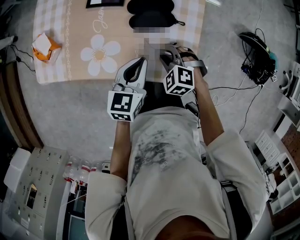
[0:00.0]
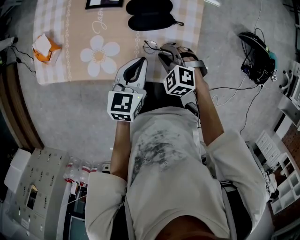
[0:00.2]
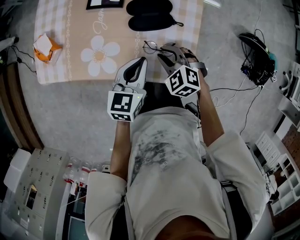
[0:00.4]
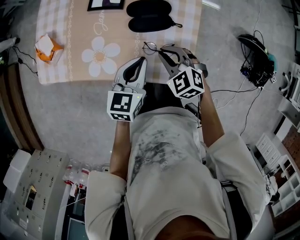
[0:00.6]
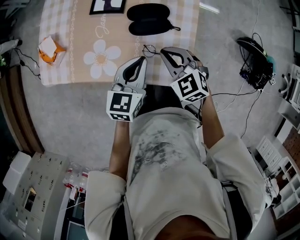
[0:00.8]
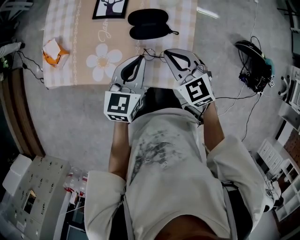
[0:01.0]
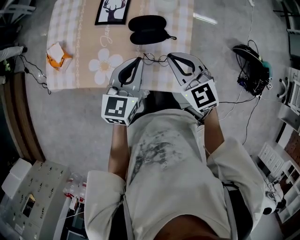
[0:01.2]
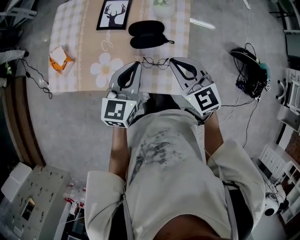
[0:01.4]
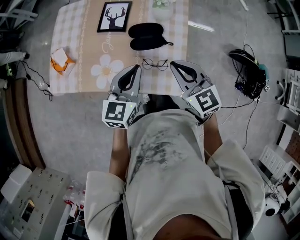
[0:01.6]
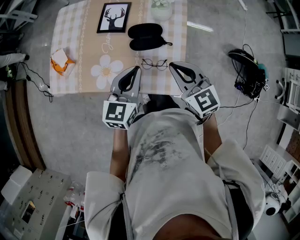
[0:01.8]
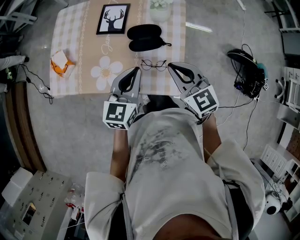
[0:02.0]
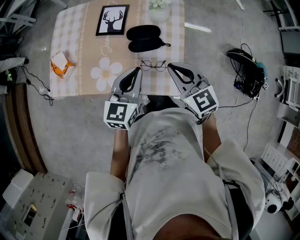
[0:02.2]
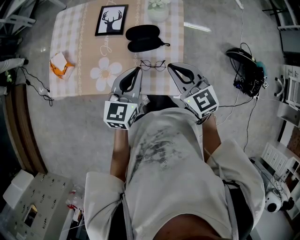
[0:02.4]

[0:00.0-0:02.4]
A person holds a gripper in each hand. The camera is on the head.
0:00.0 to 0:01.2: The left gripper heads upward, covering about 10 cm; the right gripper heads upward, covering some 20 cm, angles its fingers upward, by some 40 degrees, and closes up.
0:01.2 to 0:02.4: The grippers move only a little.

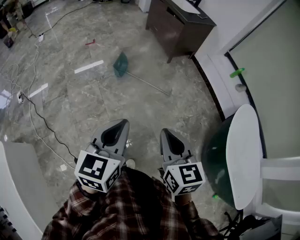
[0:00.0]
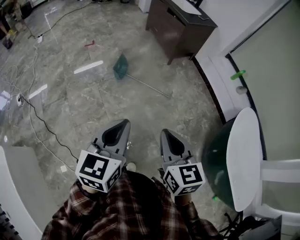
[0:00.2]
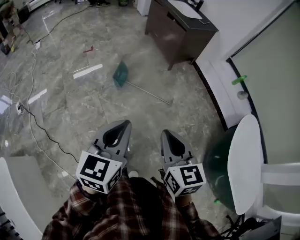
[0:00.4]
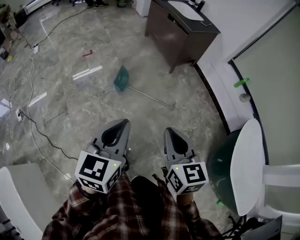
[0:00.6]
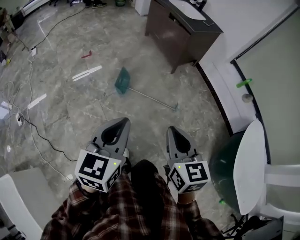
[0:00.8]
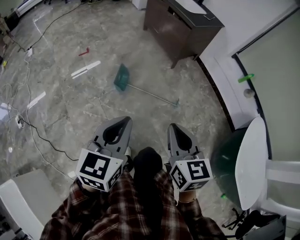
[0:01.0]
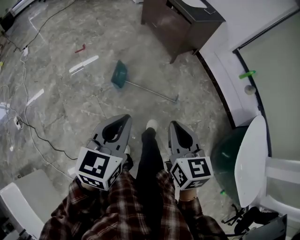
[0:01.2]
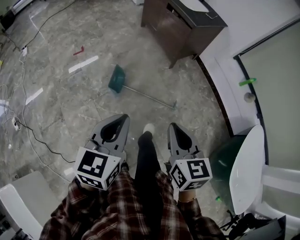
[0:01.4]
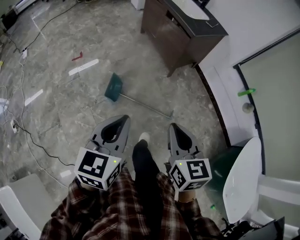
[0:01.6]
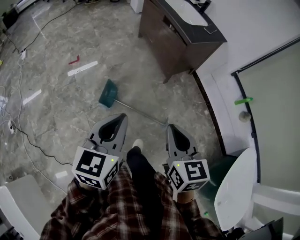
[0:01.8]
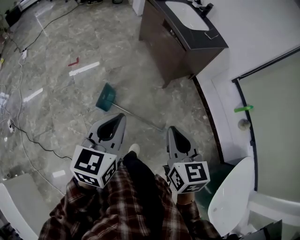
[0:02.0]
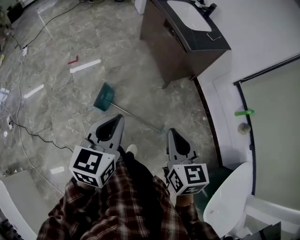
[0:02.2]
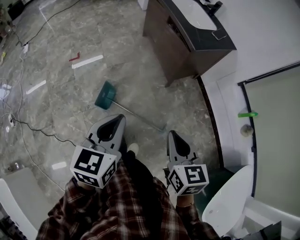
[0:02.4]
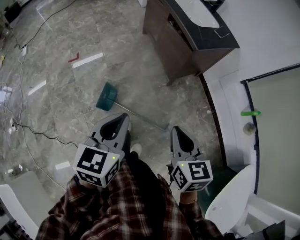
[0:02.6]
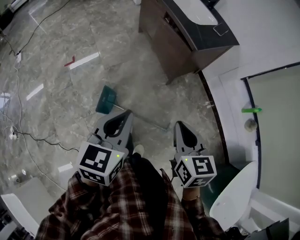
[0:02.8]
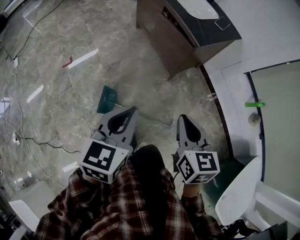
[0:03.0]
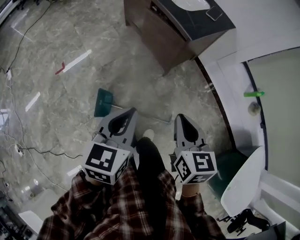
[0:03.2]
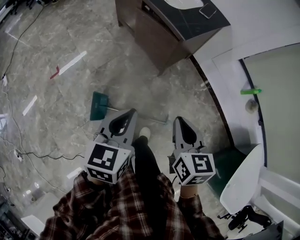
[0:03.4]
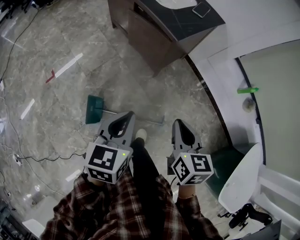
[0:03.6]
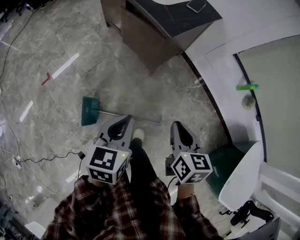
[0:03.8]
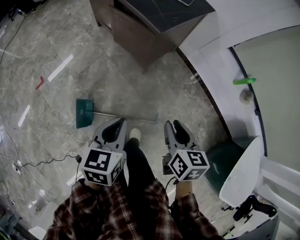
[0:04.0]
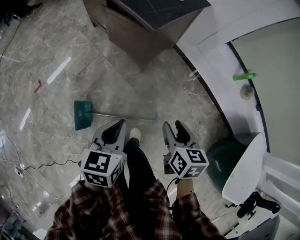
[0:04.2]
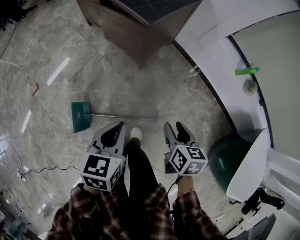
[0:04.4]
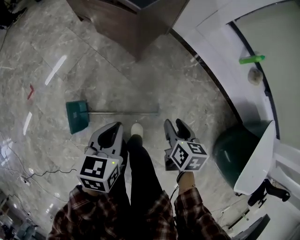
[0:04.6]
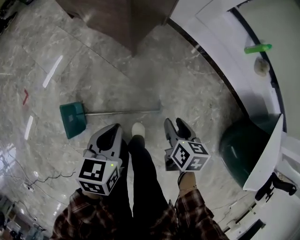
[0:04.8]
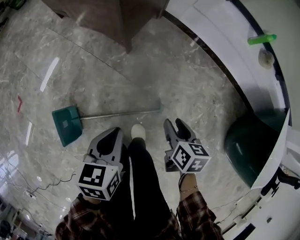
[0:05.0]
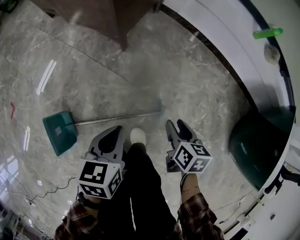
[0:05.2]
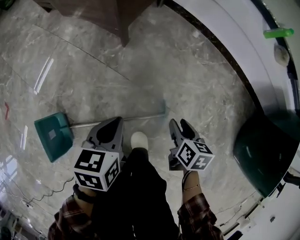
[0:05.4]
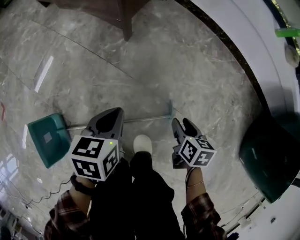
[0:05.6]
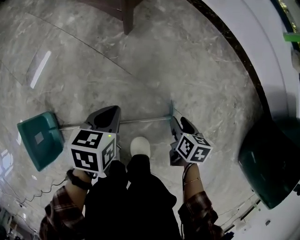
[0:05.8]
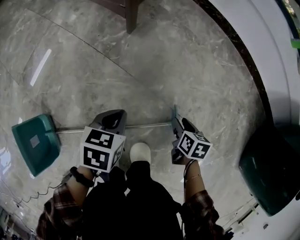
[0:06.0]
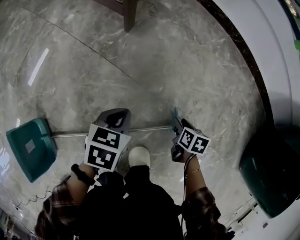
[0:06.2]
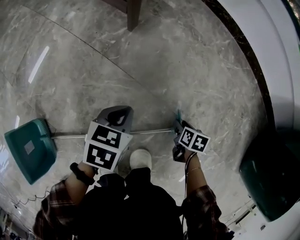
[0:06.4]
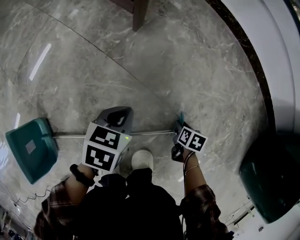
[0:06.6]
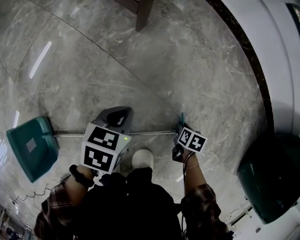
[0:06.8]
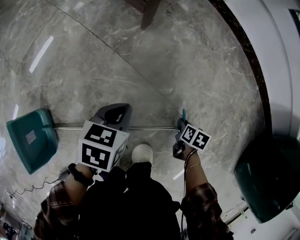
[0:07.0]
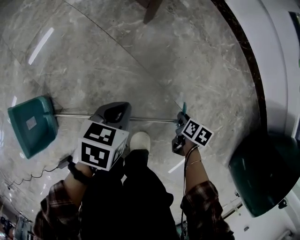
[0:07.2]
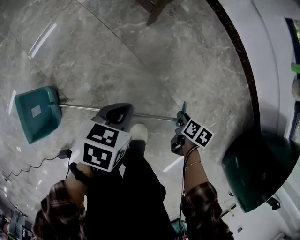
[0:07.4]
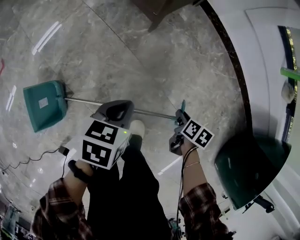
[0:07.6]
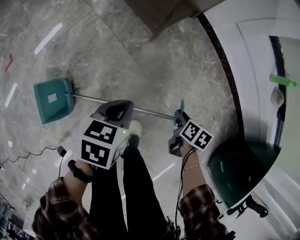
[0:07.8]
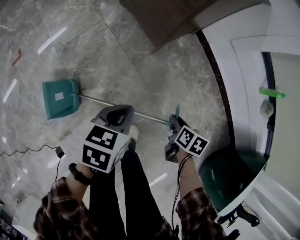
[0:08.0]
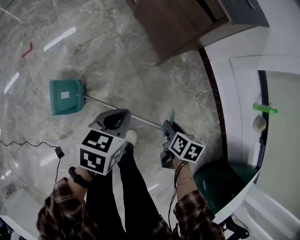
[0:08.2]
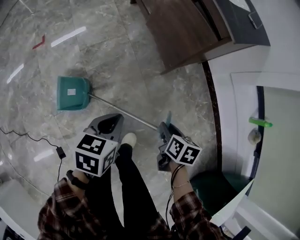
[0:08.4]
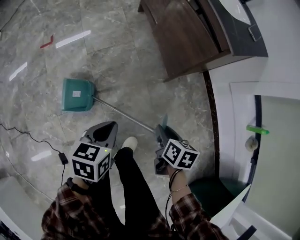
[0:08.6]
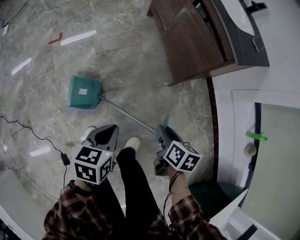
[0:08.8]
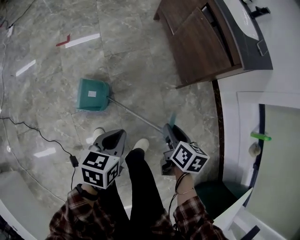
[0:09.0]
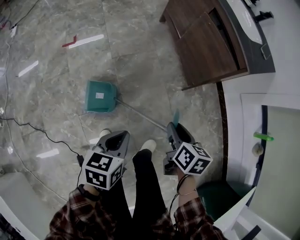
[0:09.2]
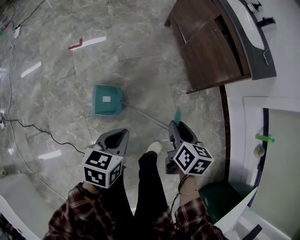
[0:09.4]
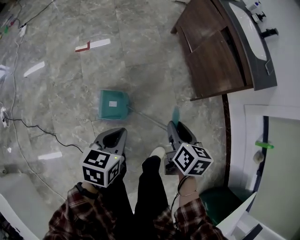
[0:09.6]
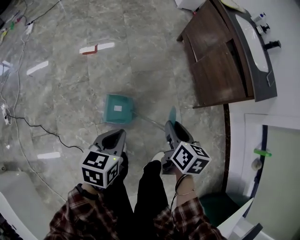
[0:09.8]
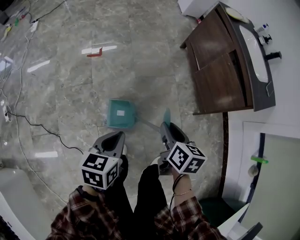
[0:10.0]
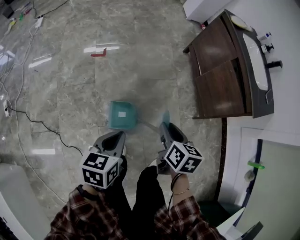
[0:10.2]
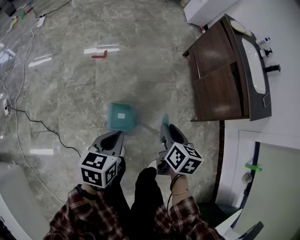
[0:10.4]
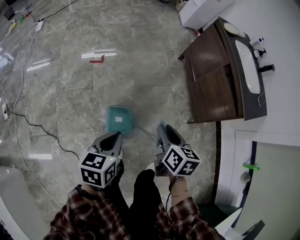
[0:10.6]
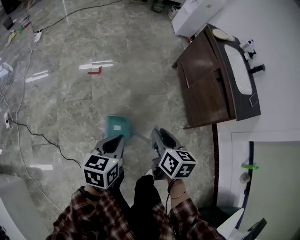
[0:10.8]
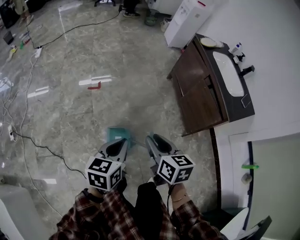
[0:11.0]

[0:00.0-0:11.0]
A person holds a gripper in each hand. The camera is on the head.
0:00.0 to 0:01.6: Both grippers are carried forward, about 40 cm.
0:01.6 to 0:03.2: Both grippers move forward, some 30 cm.
0:03.2 to 0:04.8: The two grippers go some 35 cm downward and to the right. The right gripper rotates roughly 40 degrees, and opens up; the left gripper rotates roughly 20 degrees.
0:04.8 to 0:06.2: The two grippers go roughly 50 cm downward. The left gripper turns by about 20 degrees.
0:06.2 to 0:07.8: Both grippers move upward, approximately 30 cm.
0:07.8 to 0:09.4: The left gripper changes place by roughly 40 cm, and swivels some 30 degrees, while the right gripper shifts by about 50 cm, and changes its angle by approximately 40 degrees.
0:09.4 to 0:11.0: The left gripper goes roughly 25 cm upward and to the left, while the right gripper is displaced to the left and upward by some 30 cm, and swivels roughly 30 degrees.

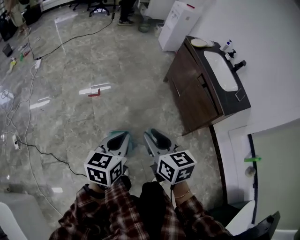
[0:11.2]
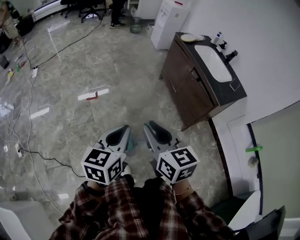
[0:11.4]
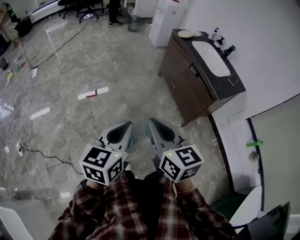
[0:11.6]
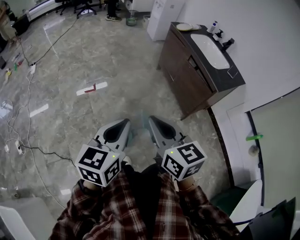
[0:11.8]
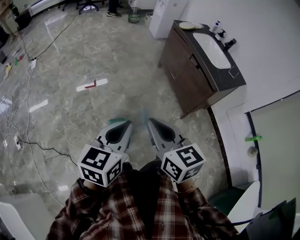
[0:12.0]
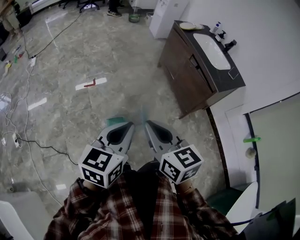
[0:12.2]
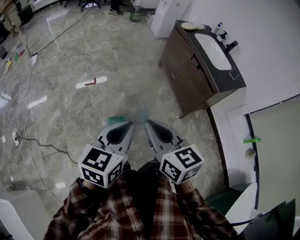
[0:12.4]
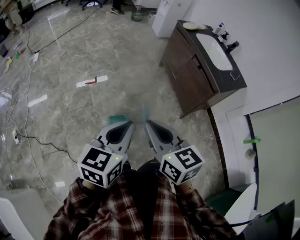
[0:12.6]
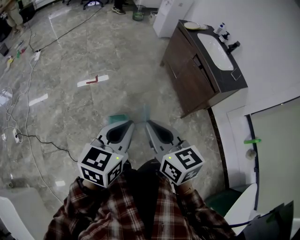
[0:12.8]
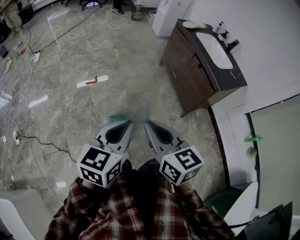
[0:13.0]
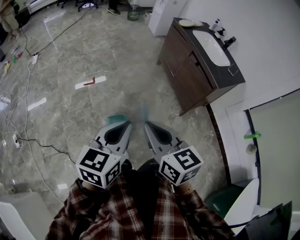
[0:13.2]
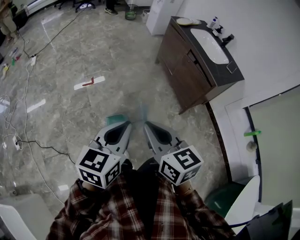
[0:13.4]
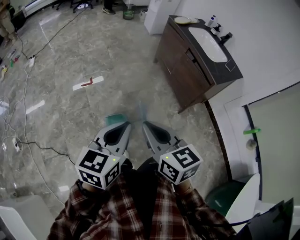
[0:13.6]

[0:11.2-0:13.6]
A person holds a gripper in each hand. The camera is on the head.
0:11.2 to 0:12.4: Both grippers travel together backward and upward, roughly 10 cm. The right gripper closes up.
0:12.4 to 0:13.6: The grippers make only small movements.

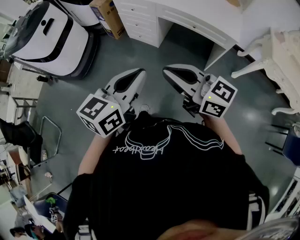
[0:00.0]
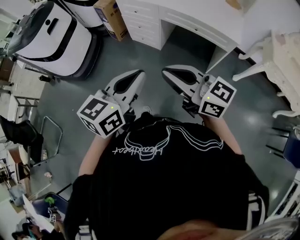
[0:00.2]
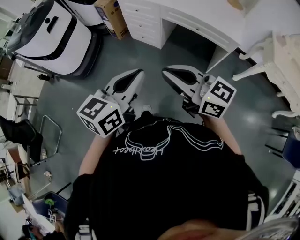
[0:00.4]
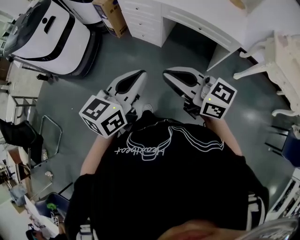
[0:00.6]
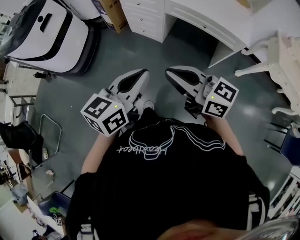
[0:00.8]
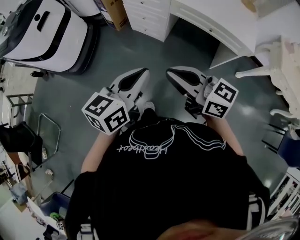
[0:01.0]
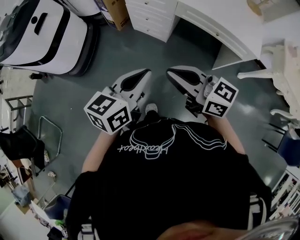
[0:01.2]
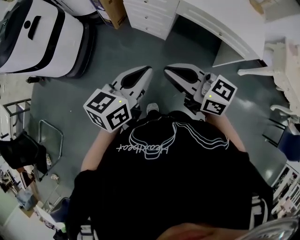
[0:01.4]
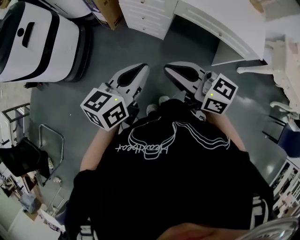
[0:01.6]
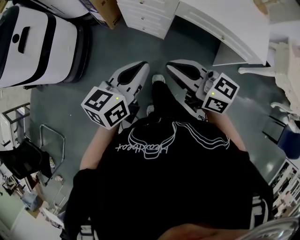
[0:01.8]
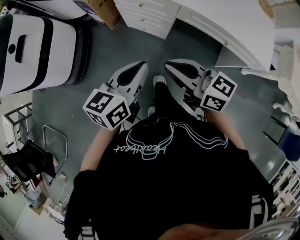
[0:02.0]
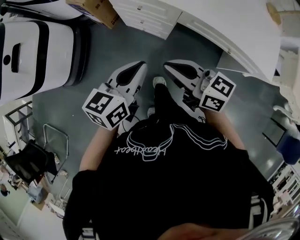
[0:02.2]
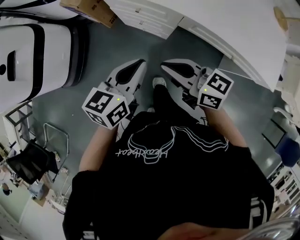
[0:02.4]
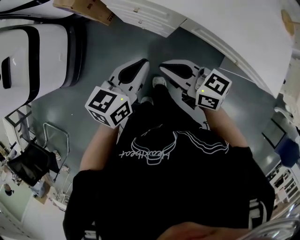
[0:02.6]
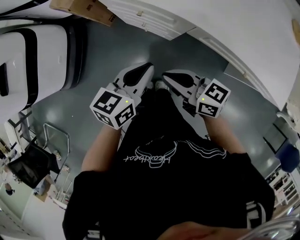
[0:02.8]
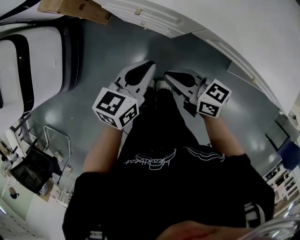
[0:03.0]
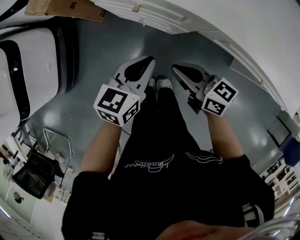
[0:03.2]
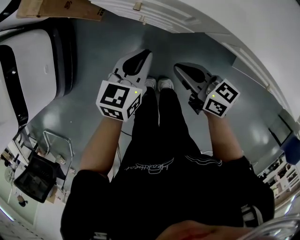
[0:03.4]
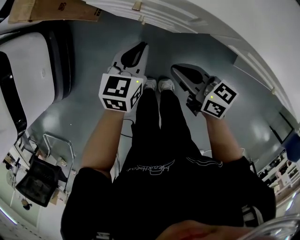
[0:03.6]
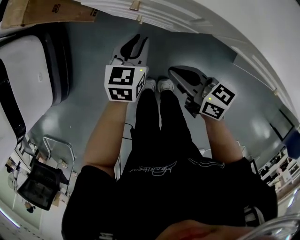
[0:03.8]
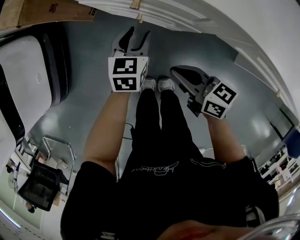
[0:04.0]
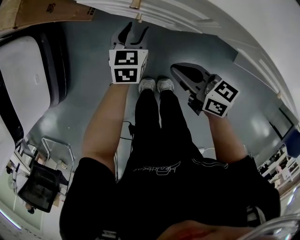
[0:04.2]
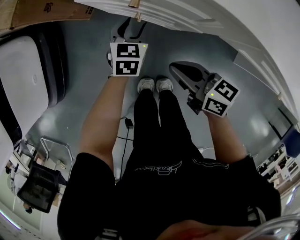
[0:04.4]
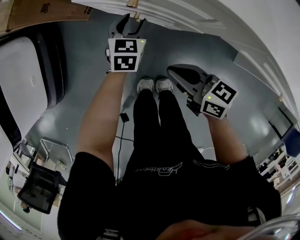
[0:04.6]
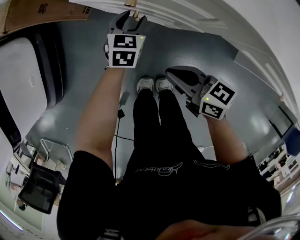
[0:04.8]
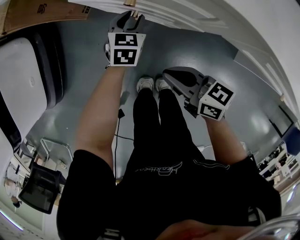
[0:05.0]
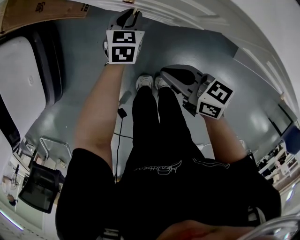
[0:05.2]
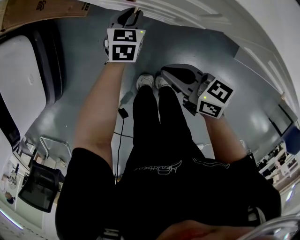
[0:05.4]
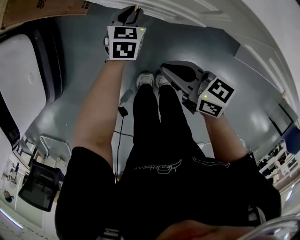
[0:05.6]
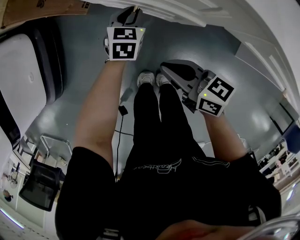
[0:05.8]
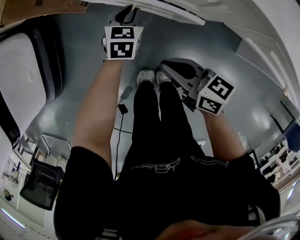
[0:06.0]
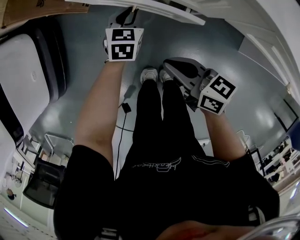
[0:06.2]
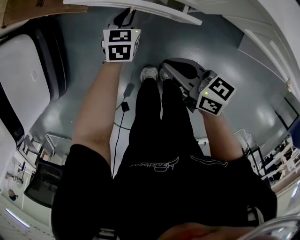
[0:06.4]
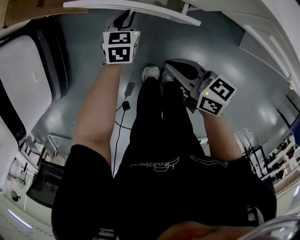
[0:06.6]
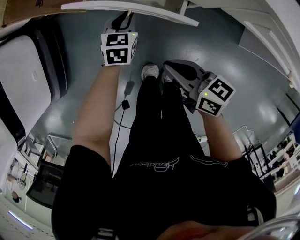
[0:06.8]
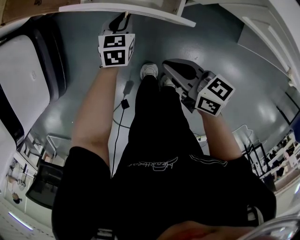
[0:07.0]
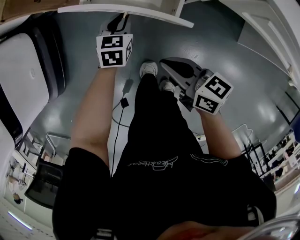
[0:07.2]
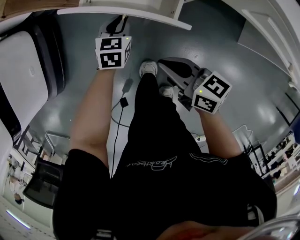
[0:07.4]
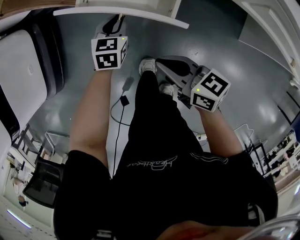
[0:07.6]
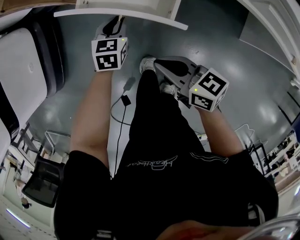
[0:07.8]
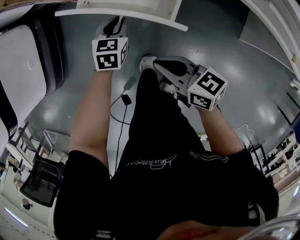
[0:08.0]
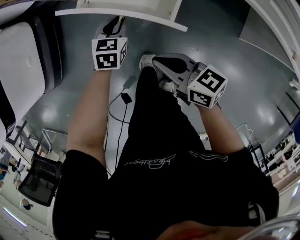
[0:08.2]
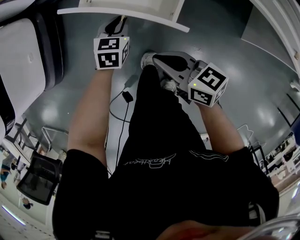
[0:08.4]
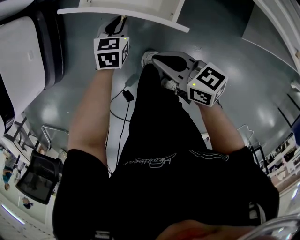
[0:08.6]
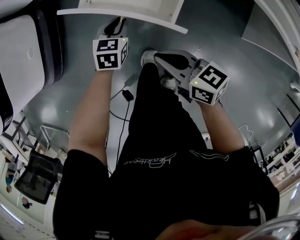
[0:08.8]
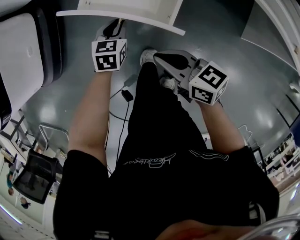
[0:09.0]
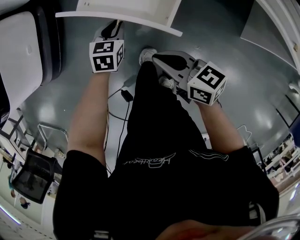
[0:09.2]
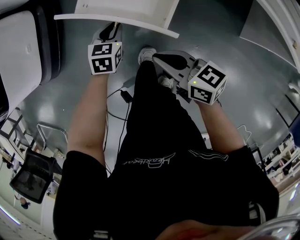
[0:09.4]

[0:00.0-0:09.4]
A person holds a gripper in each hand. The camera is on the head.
0:00.0 to 0:01.6: The left gripper heads forward, to the left and downward, covering roughly 25 cm. Meanwhile the right gripper travels forward and to the left by approximately 25 cm.
0:01.6 to 0:03.2: The left gripper heads forward and downward, covering about 40 cm, while the right gripper shifts about 40 cm downward and forward, and rotates some 20 degrees.
0:03.2 to 0:04.8: The right gripper goes approximately 10 cm downward; the left gripper shifts roughly 30 cm downward and forward, swivels some 20 degrees, and opens up.
0:04.8 to 0:06.2: The left gripper closes its fingers.
0:06.2 to 0:07.8: The right gripper heads backward, covering some 5 cm. Meanwhile the left gripper goes some 10 cm backward and to the left.
0:07.8 to 0:09.4: The left gripper moves to the left and backward, roughly 10 cm, while the right gripper ends up approximately 5 cm from where it was.
